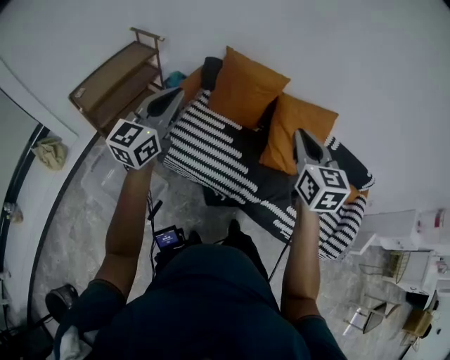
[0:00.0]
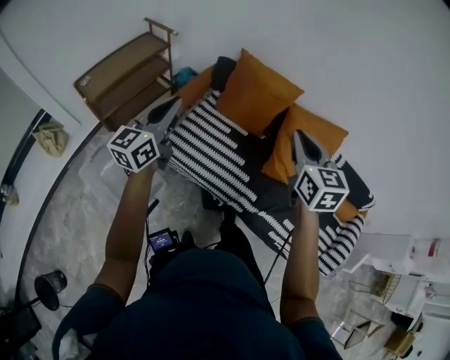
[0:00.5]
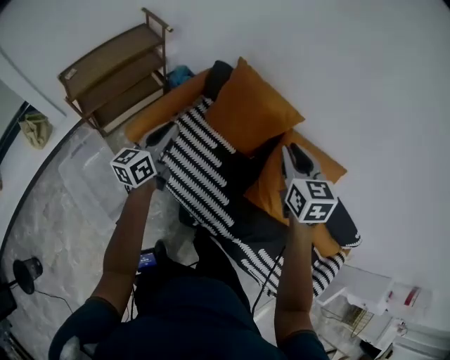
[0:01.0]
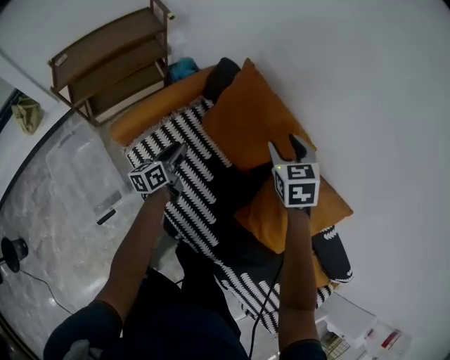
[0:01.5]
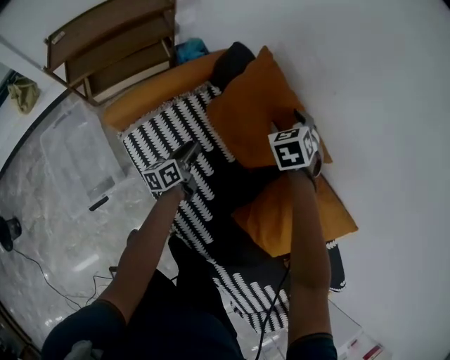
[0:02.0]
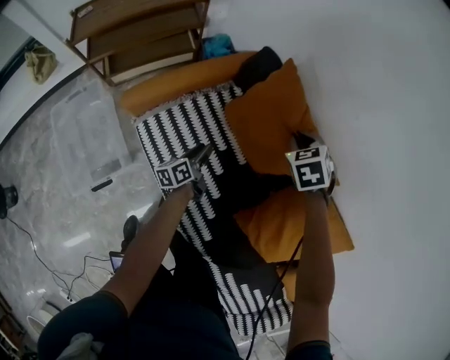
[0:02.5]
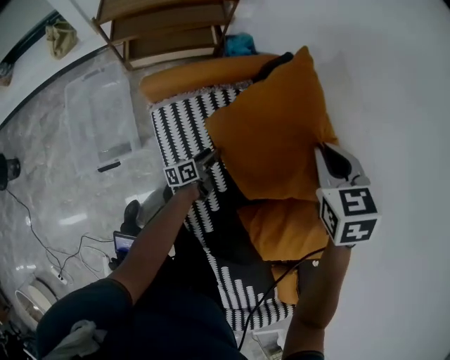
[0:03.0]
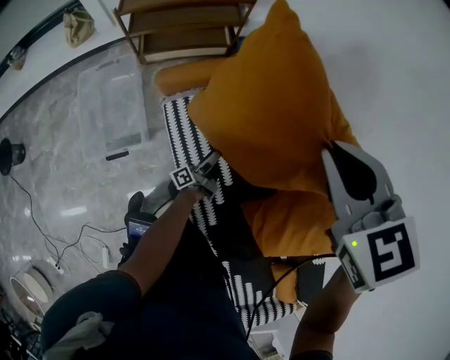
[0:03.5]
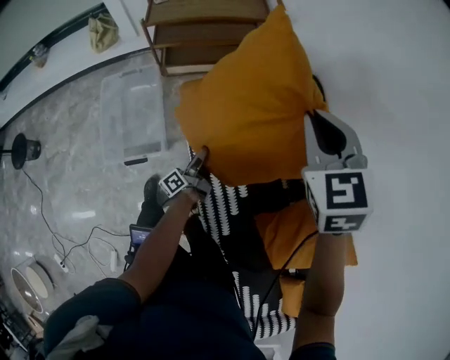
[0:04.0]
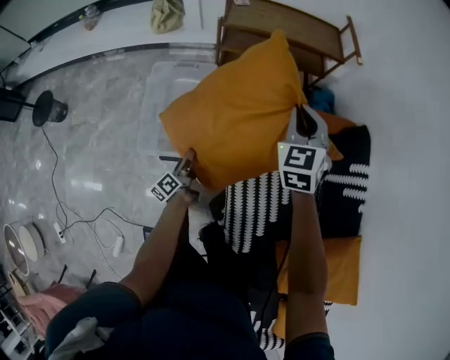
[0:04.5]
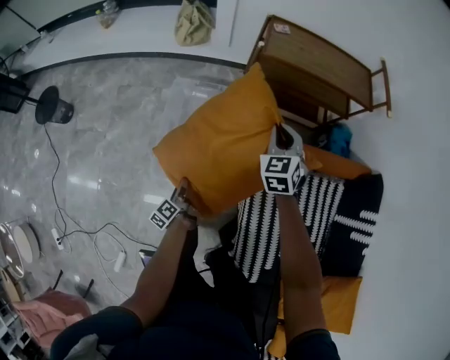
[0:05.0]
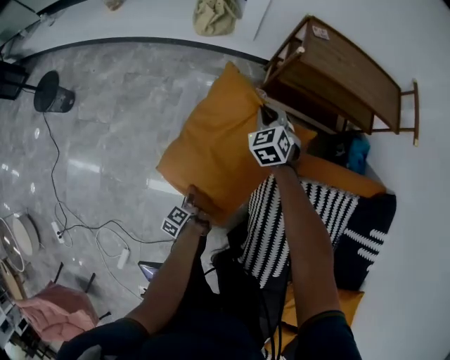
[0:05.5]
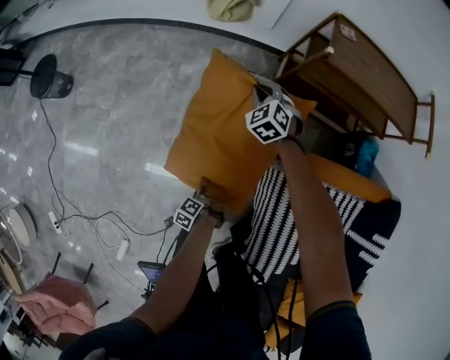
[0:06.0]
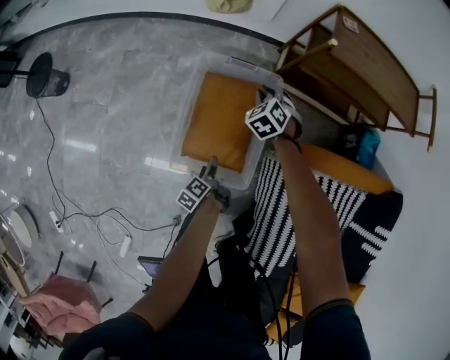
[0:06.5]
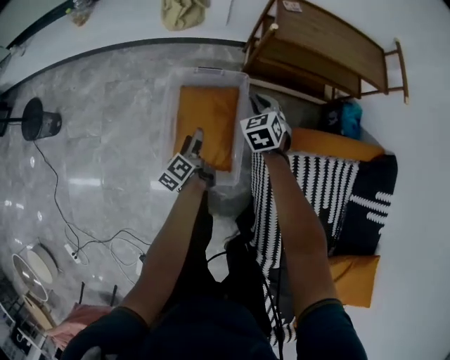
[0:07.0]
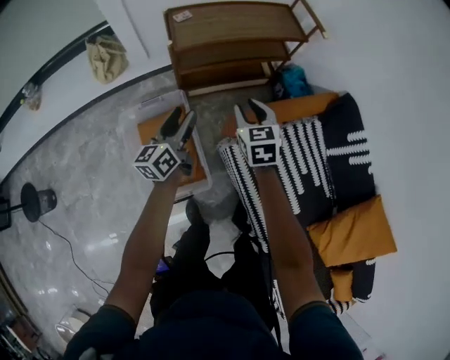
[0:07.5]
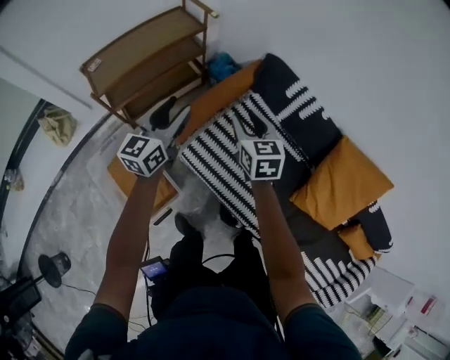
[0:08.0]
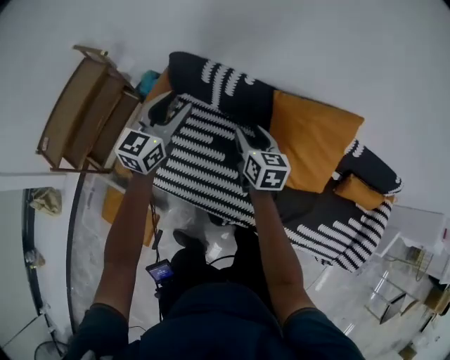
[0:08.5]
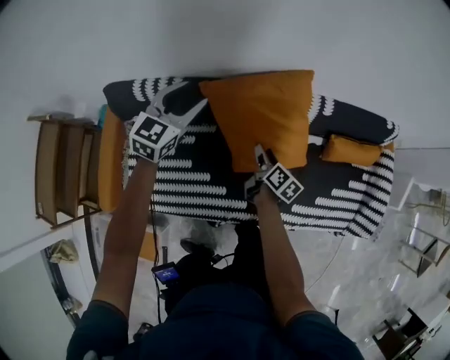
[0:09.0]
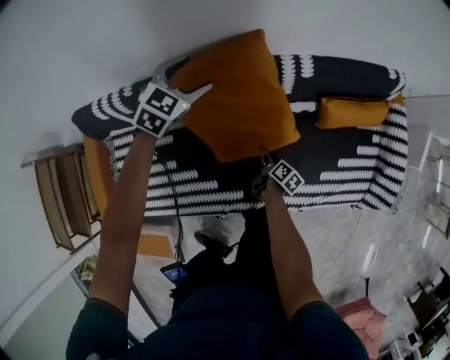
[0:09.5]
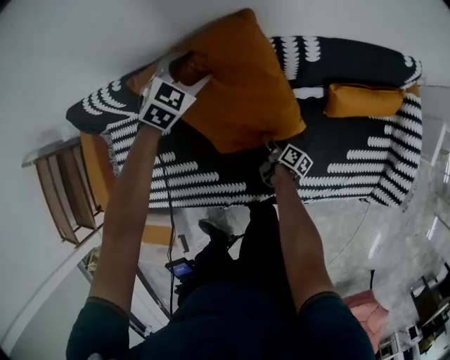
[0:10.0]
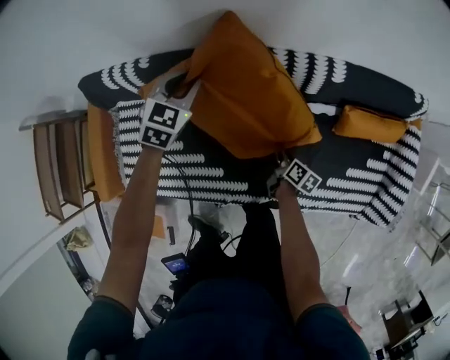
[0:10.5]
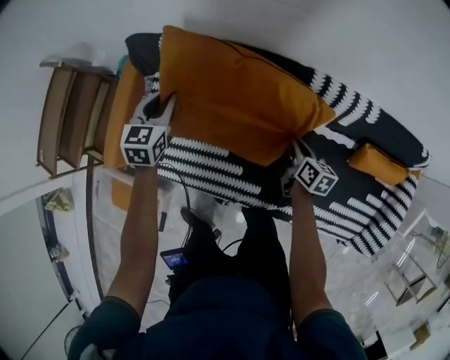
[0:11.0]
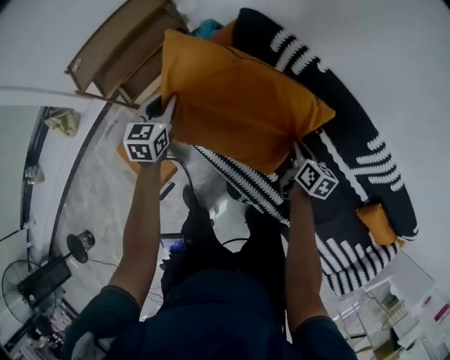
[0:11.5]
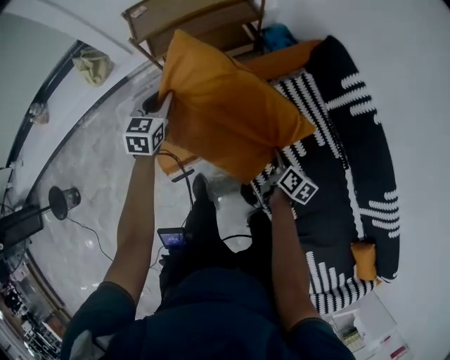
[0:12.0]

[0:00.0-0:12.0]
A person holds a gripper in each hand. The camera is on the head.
0.0 to 2.0 s: The left gripper moves downward and forward, some 60 cm, rolls counterclockwise, seen from behind, by approximately 50 degrees, and opens up; the right gripper shifts approximately 70 cm forward and downward, angles its fingers downward, by approximately 40 degrees, and opens its fingers.
2.0 to 4.0 s: The right gripper shifts by approximately 40 cm, rotates roughly 40 degrees, and closes. The left gripper travels downward and back again, roughly 5 cm each way, rotates approximately 40 degrees, and opens, then closes again.
4.0 to 6.0 s: Both grippers are carried some 60 cm. The right gripper turns by roughly 40 degrees. The left gripper tilts its fingers roughly 40 degrees downward.
6.0 to 8.0 s: The left gripper changes place by about 70 cm, and tilts its fingers approximately 40 degrees upward, while the right gripper shifts by some 70 cm, rotates around the line of its fingers by roughly 70 degrees, clockwise from behind, and opens.
8.0 to 10.0 s: The two grippers travel together, approximately 80 cm. The right gripper rolls clockwise, seen from behind, by approximately 100 degrees; the left gripper angles its fingers downward, by about 40 degrees.
10.0 to 12.0 s: The two grippers travel together, approximately 80 cm. The left gripper turns by some 100 degrees, and closes its fingers; the right gripper rolls counterclockwise, seen from behind, by about 60 degrees, and closes its fingers.

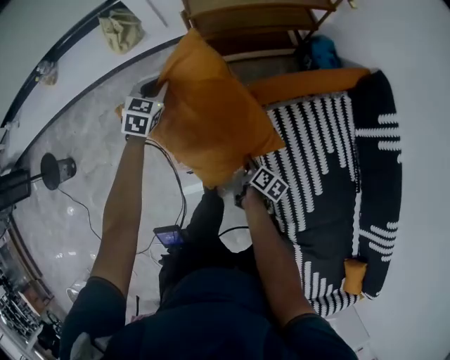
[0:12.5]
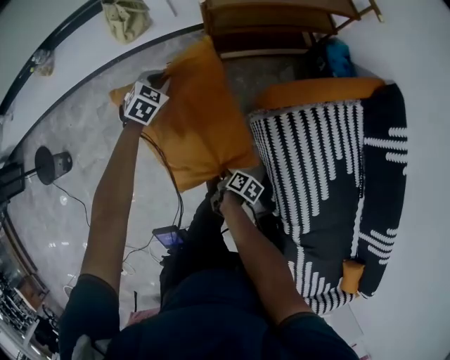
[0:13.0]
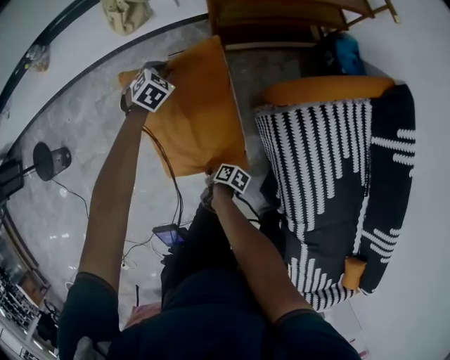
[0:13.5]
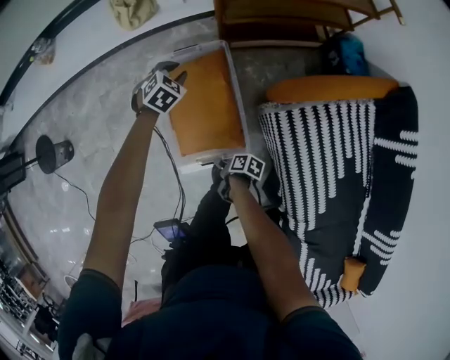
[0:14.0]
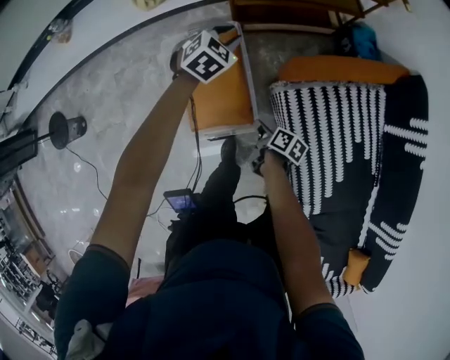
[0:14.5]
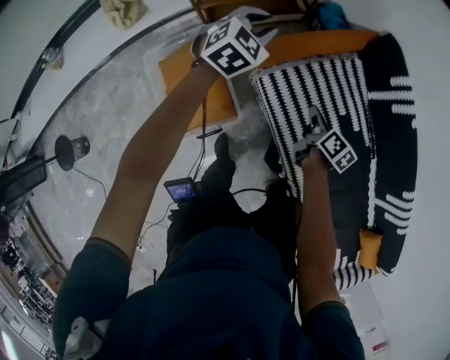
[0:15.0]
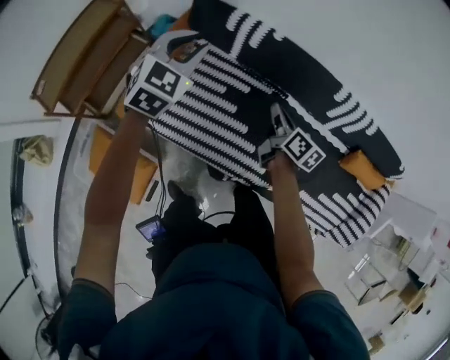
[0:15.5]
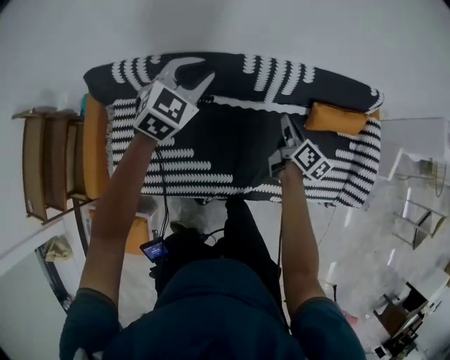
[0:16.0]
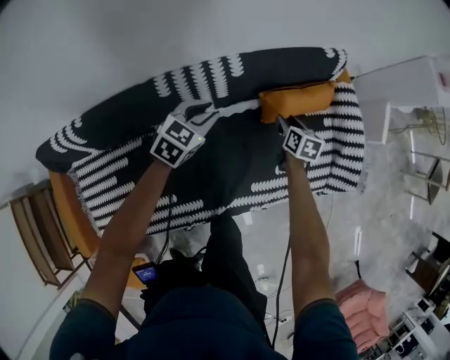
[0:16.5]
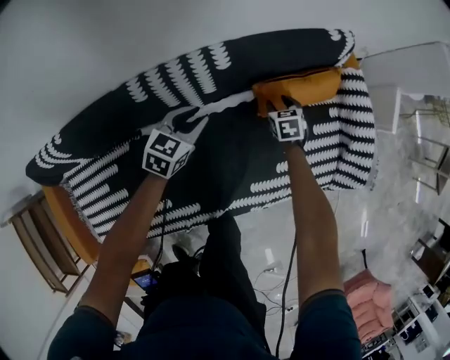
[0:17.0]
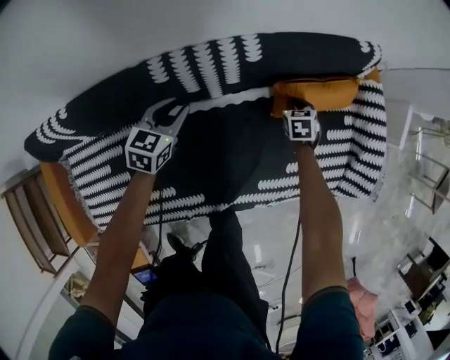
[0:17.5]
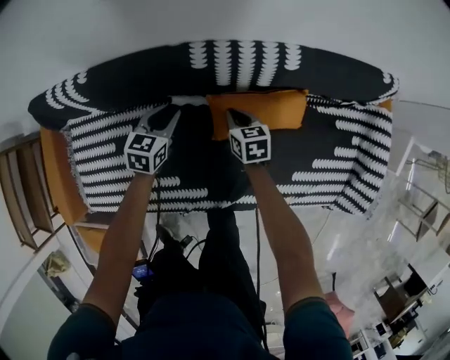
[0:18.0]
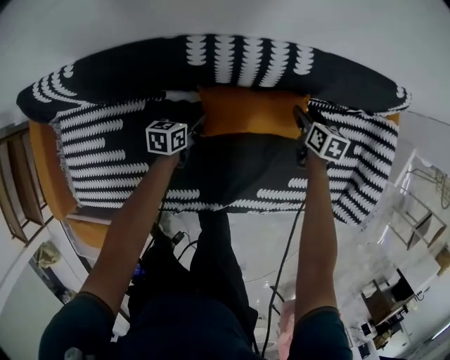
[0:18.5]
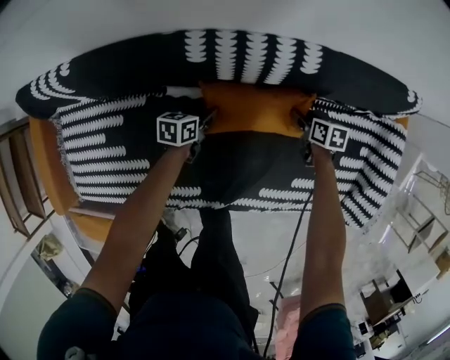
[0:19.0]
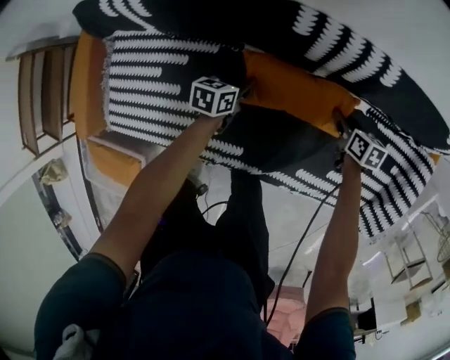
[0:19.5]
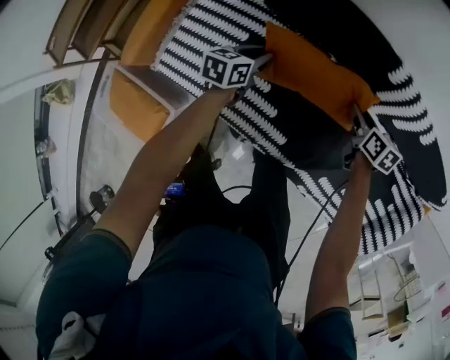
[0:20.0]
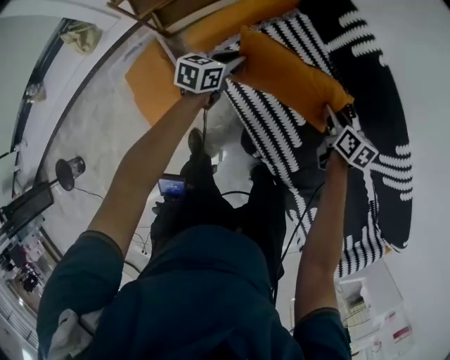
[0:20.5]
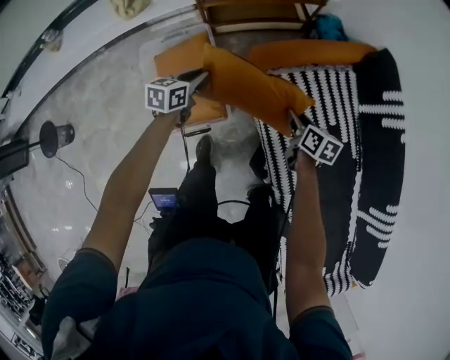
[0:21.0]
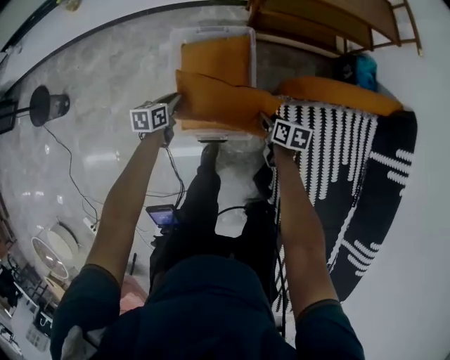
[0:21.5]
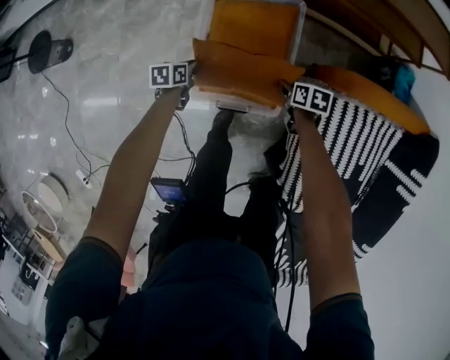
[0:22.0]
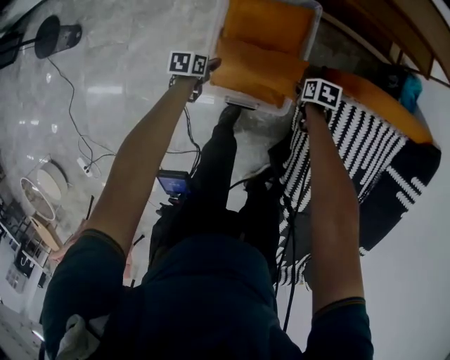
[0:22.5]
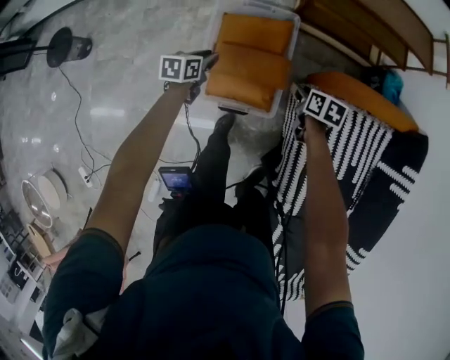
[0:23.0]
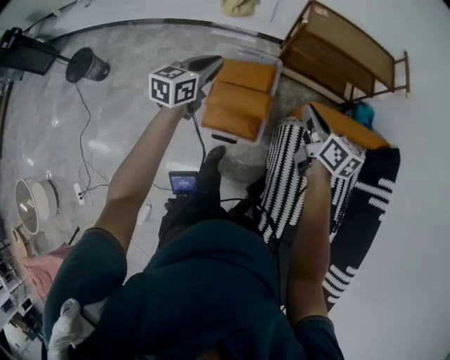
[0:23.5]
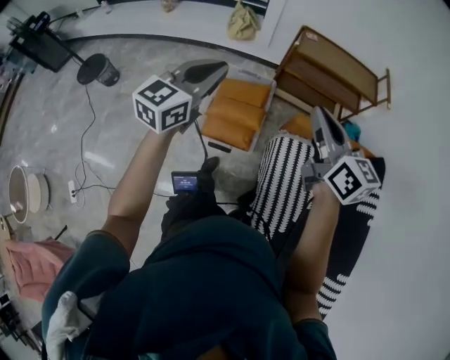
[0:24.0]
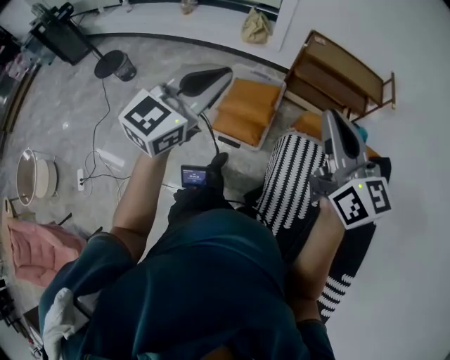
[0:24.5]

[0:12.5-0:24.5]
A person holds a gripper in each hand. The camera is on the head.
12.5 to 14.5 s: The right gripper moves about 25 cm to the left and comes back, while the left gripper goes about 10 cm to the right.
14.5 to 16.5 s: The two grippers travel together, roughly 1 m. The left gripper rotates some 90 degrees, while the right gripper rotates approximately 80 degrees.
16.5 to 18.5 s: The right gripper goes up and down, approximately 15 cm each way, reversing 2 times, and closes and opens again. The left gripper travels downward by about 25 cm, and rotates around the line of its fingers by approximately 50 degrees, counterclockwise from behind.
18.5 to 20.5 s: The pair of grippers is taken approximately 70 cm. The left gripper swivels some 40 degrees, and closes up. The right gripper changes its angle by about 50 degrees.
20.5 to 22.5 s: The pair of grippers is taken approximately 60 cm. The left gripper rotates around the line of its fingers by about 50 degrees, counterclockwise from behind. The right gripper points its fingers about 40 degrees further downward.
22.5 to 24.5 s: Both grippers travel together upward, some 80 cm. The right gripper tips its fingers upward by some 80 degrees, and closes up. The left gripper tips its fingers upward by some 50 degrees, and closes up.

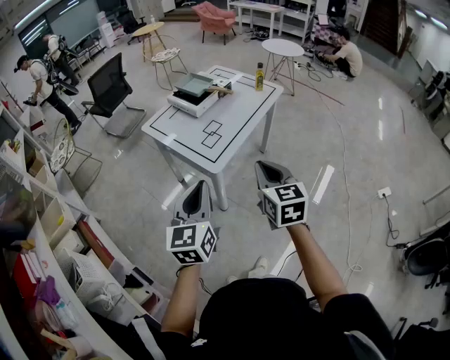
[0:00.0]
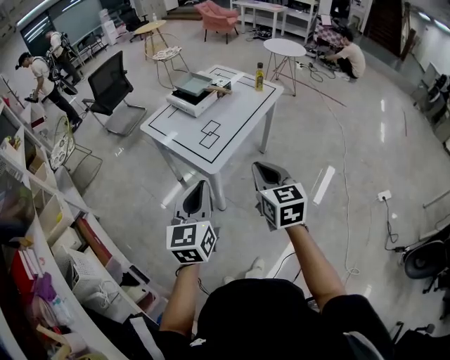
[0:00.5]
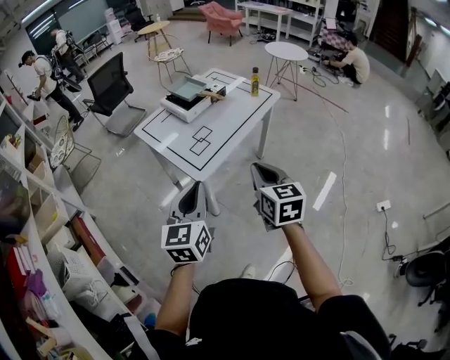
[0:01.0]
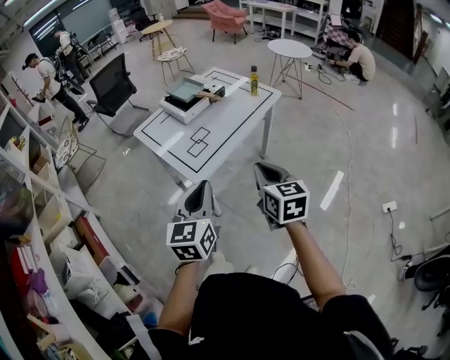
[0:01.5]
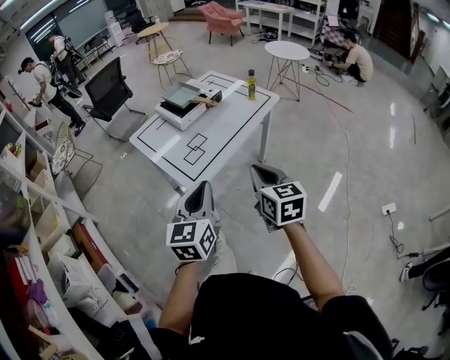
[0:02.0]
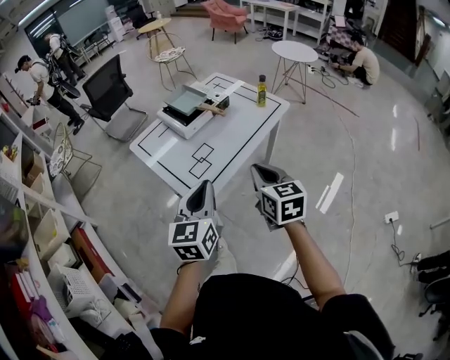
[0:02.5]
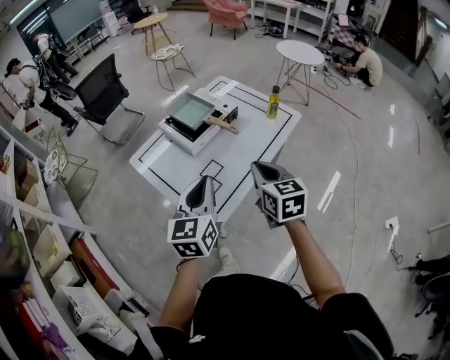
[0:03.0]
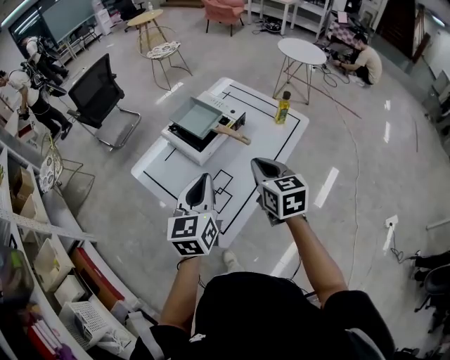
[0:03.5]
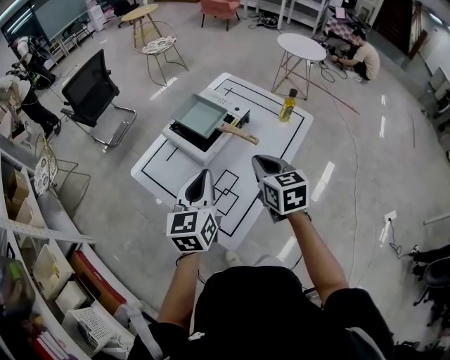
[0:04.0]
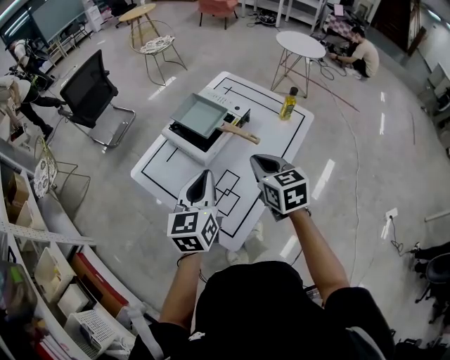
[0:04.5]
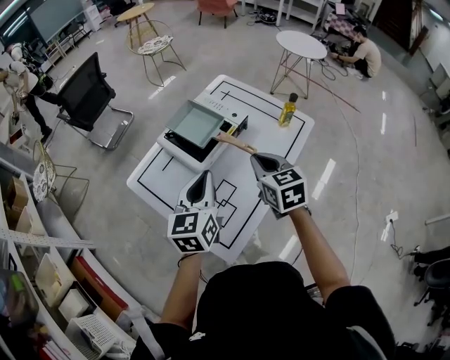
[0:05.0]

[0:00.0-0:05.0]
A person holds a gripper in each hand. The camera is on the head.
0.0 to 2.5 s: Both grippers travel together forward and to the right, approximately 20 cm.
2.5 to 5.0 s: Both grippers move forward, roughly 30 cm.
